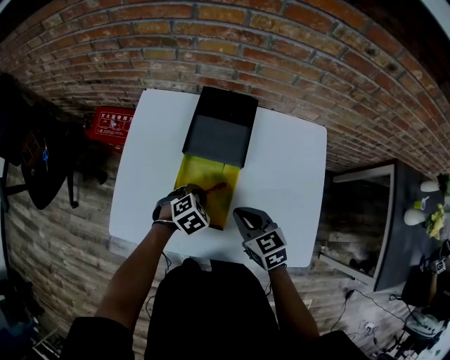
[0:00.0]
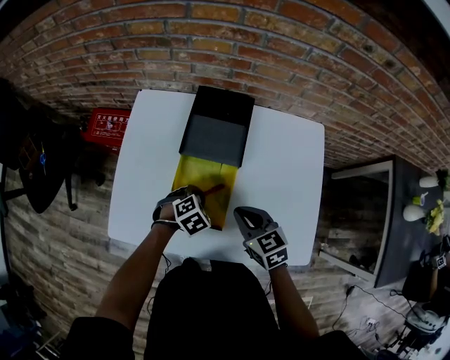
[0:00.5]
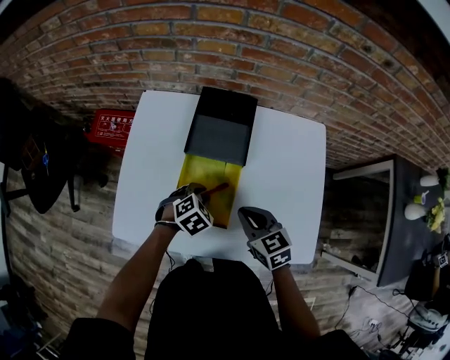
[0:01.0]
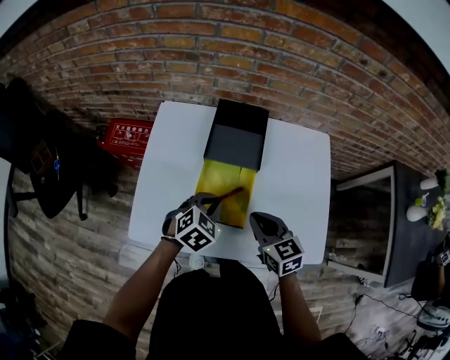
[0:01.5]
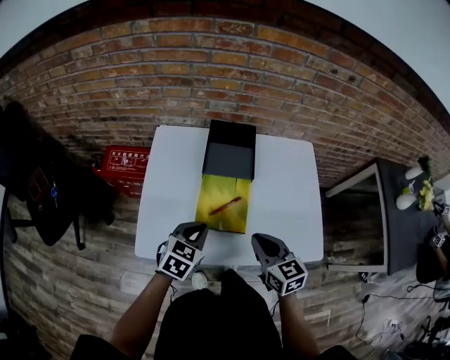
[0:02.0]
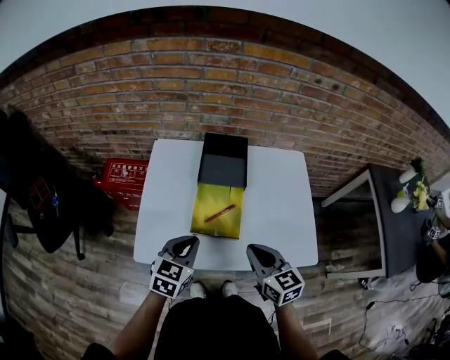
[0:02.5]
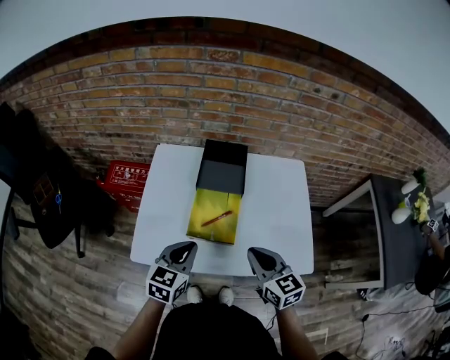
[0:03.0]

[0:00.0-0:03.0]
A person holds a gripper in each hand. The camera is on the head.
0:00.0 to 0:01.5: The left gripper travels upward by approximately 10 cm.
0:01.5 to 0:03.0: The grippers both shift backward and upward by about 15 cm. The left gripper changes its angle by roughly 30 degrees.

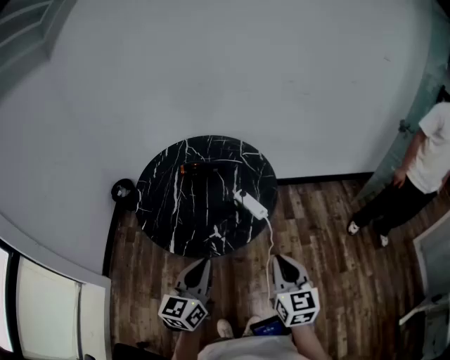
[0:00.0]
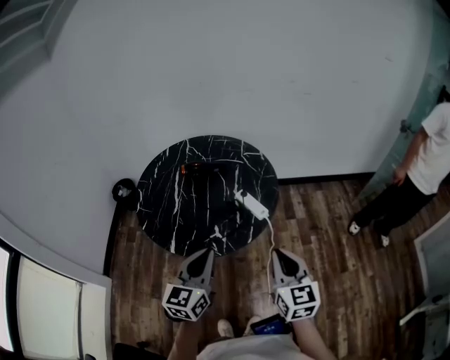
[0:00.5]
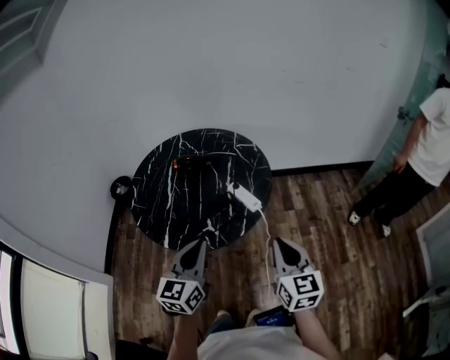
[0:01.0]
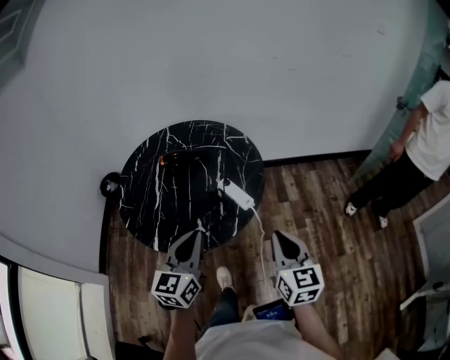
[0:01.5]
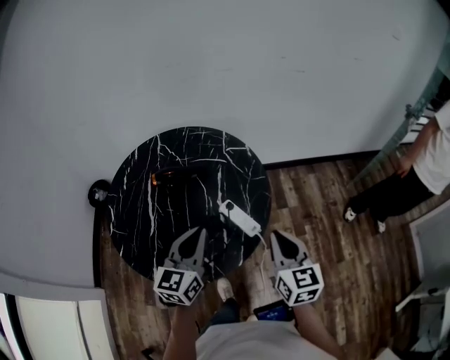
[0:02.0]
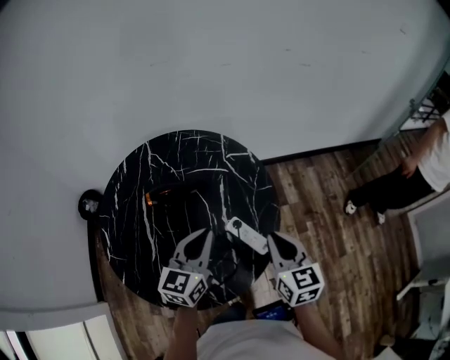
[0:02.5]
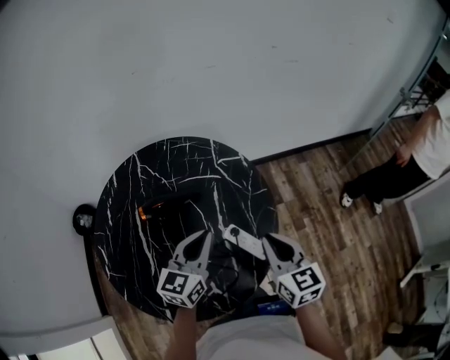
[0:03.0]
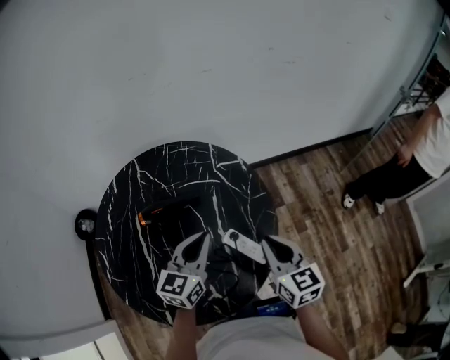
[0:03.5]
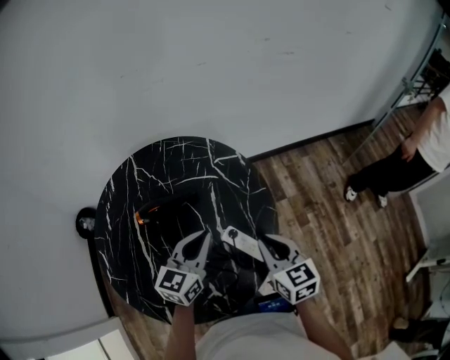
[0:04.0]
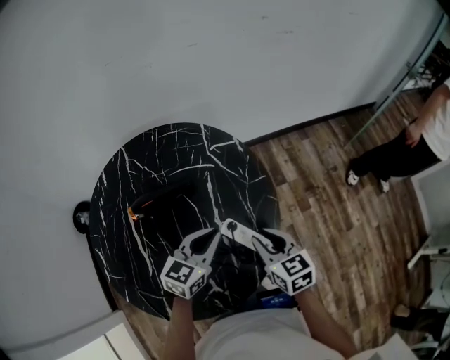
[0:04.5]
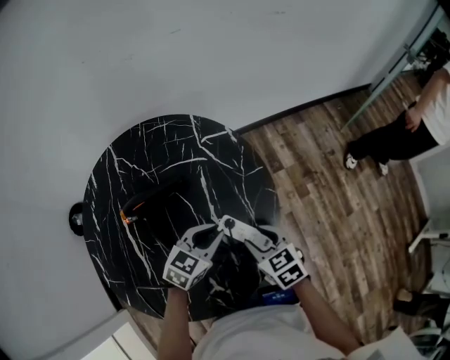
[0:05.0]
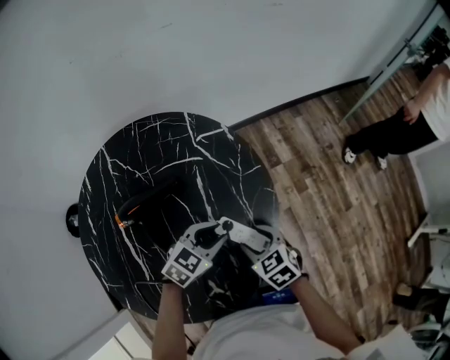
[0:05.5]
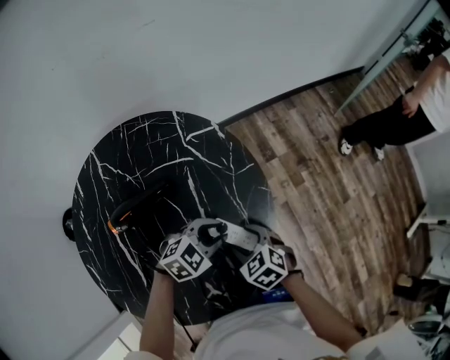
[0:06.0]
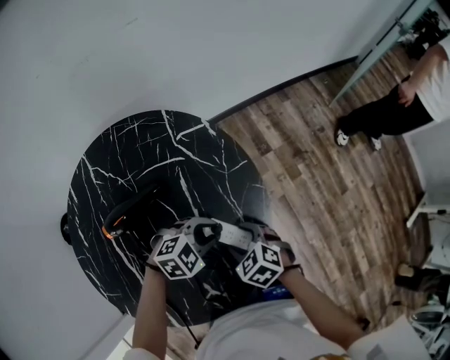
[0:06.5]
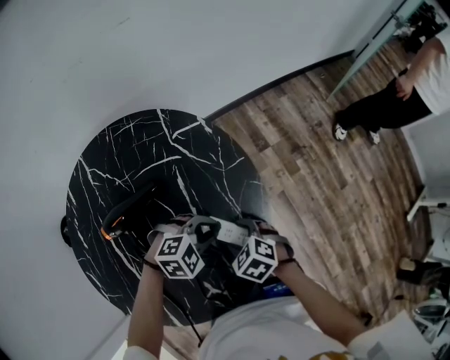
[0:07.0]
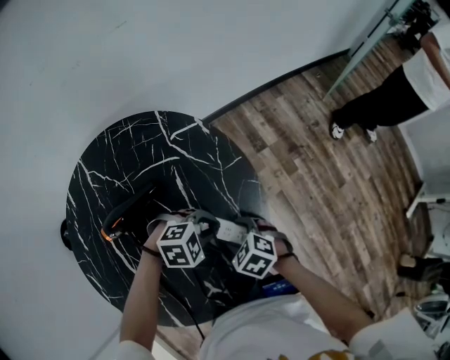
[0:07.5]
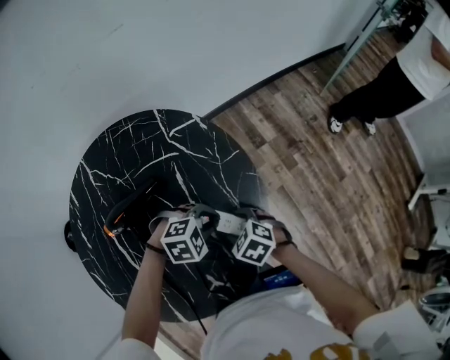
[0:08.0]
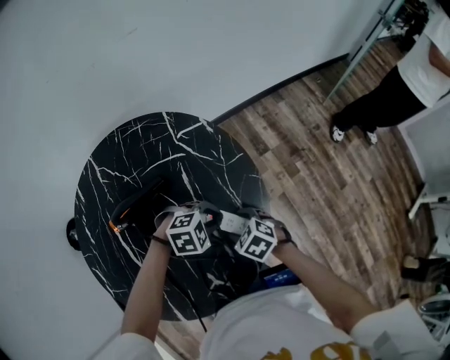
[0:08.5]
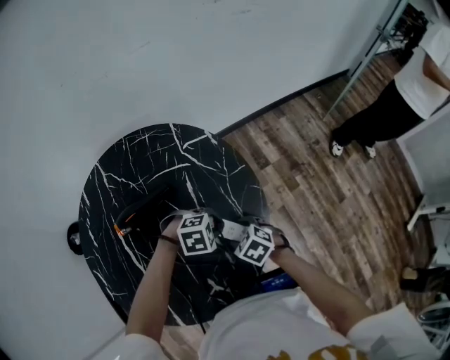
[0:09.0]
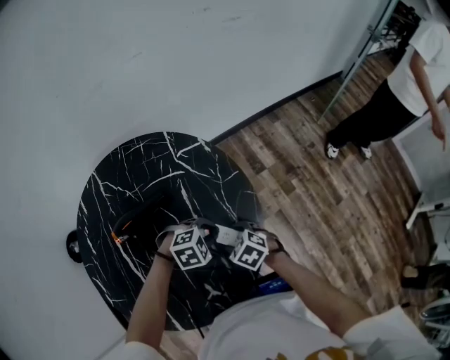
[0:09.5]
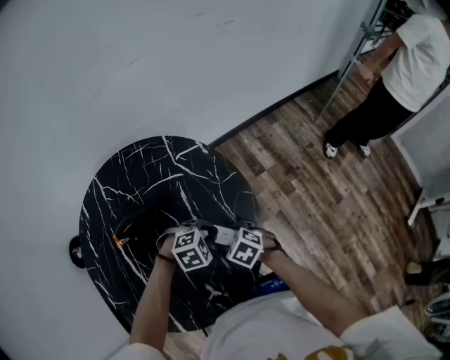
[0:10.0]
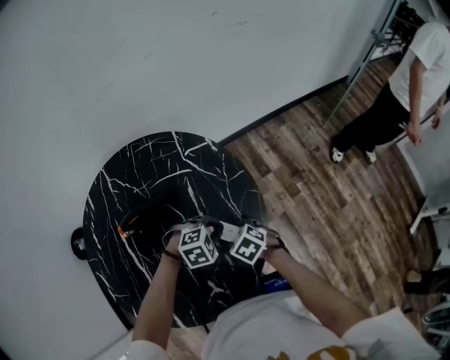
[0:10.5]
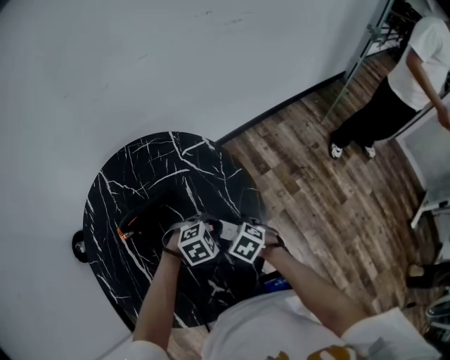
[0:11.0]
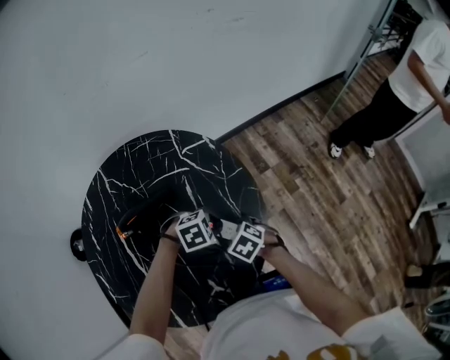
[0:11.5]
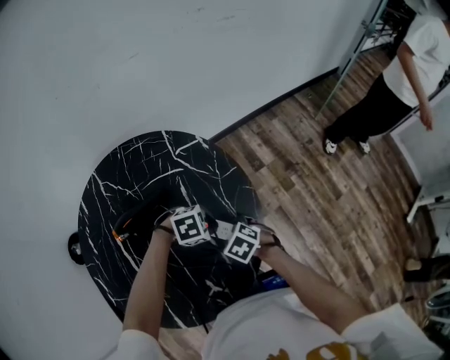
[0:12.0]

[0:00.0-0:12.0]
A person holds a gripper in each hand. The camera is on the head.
0:00.0 to 0:02.0: Both grippers move forward, about 20 cm.
0:02.0 to 0:04.0: The left gripper shifts approximately 15 cm forward and downward. Meanwhile the right gripper heads forward, downward and to the left, covering some 15 cm.
0:04.0 to 0:06.0: The right gripper travels downward by some 15 cm, tips its fingers downward by roughly 30 degrees, and opens its fingers; the left gripper heads downward and to the right, covering about 15 cm, tilts its fingers roughly 30 degrees downward, and opens.
0:06.0 to 0:08.0: The left gripper turns by roughly 30 degrees.
0:08.0 to 0:12.0: There are only small adjustments of the grippers.

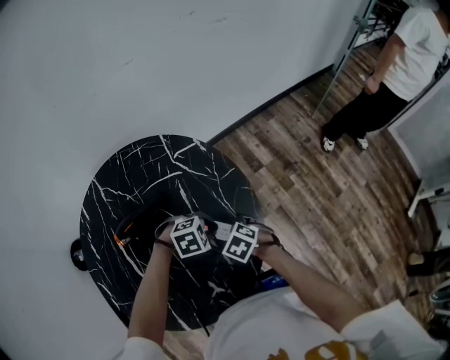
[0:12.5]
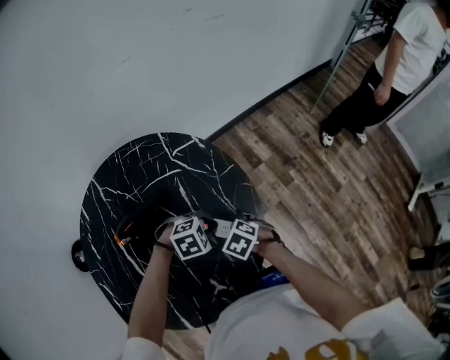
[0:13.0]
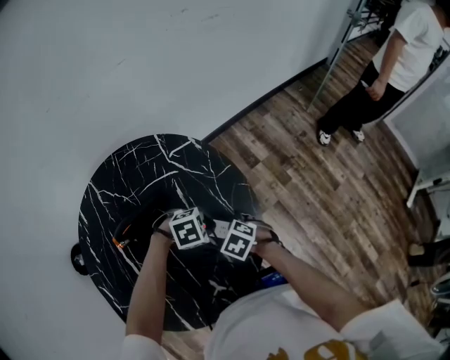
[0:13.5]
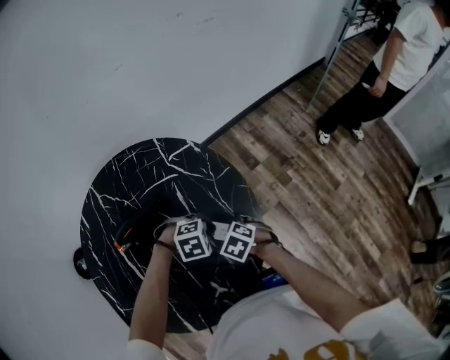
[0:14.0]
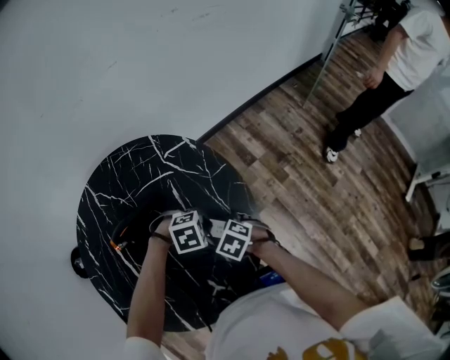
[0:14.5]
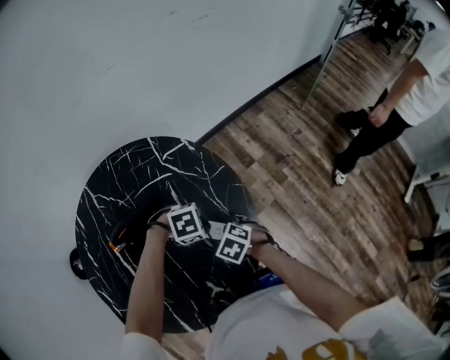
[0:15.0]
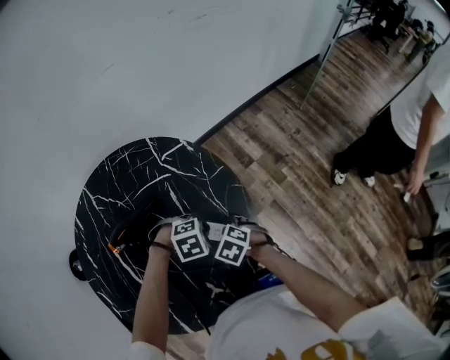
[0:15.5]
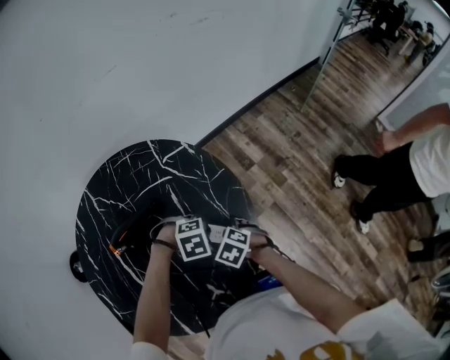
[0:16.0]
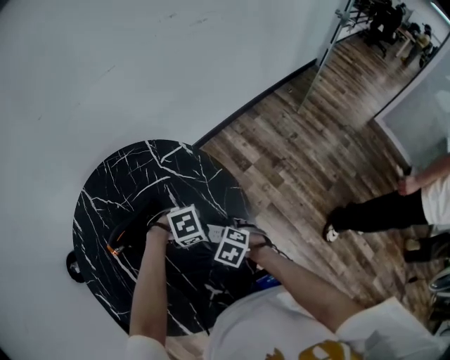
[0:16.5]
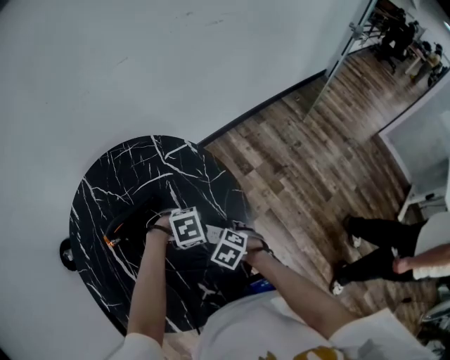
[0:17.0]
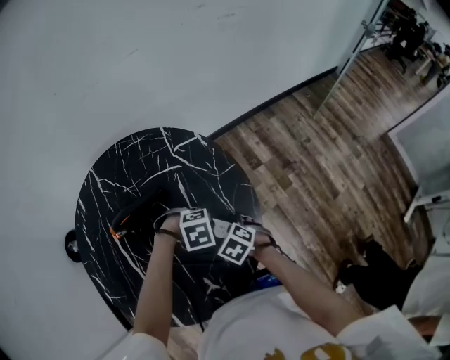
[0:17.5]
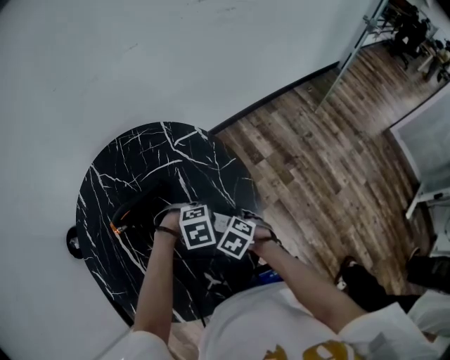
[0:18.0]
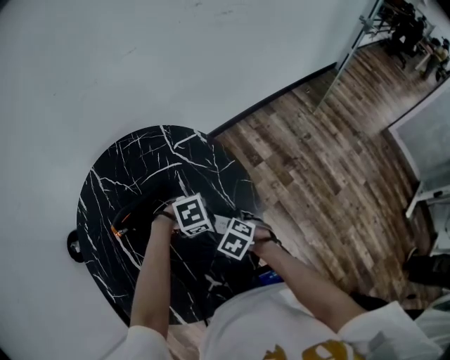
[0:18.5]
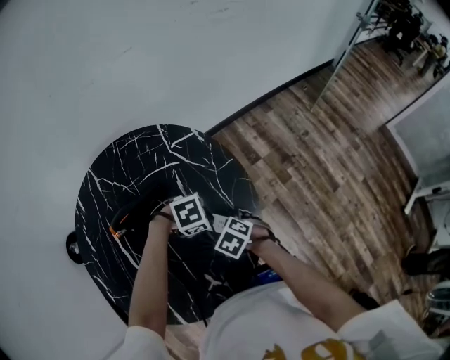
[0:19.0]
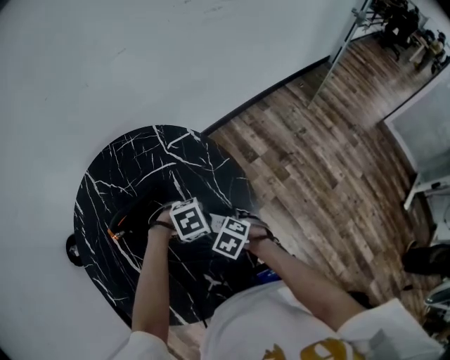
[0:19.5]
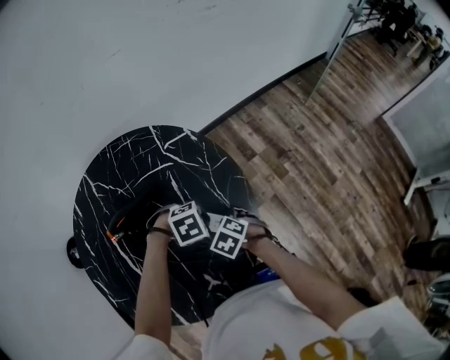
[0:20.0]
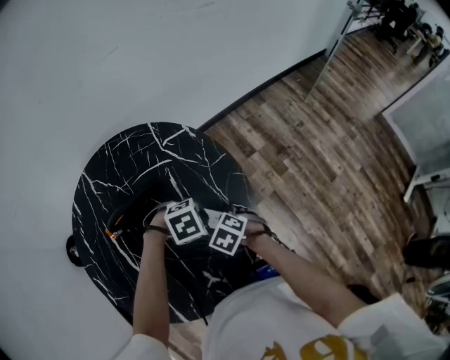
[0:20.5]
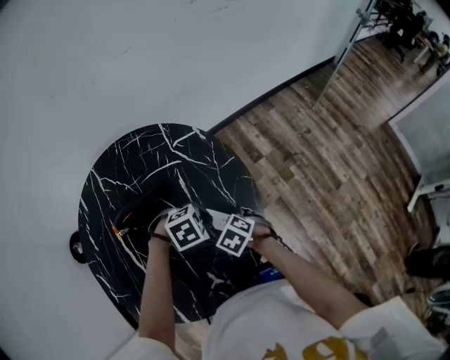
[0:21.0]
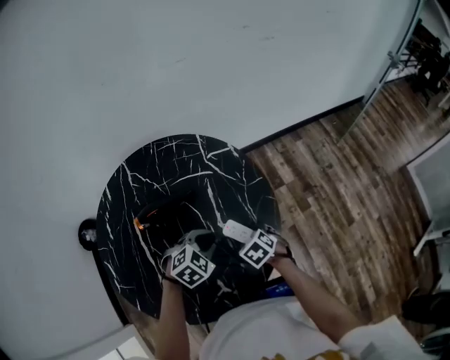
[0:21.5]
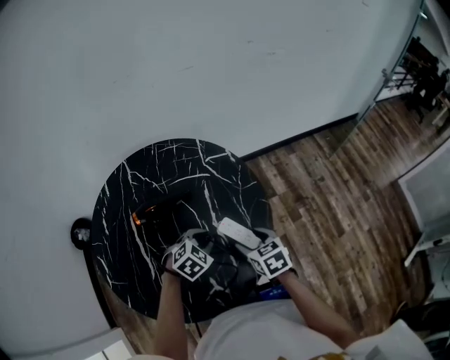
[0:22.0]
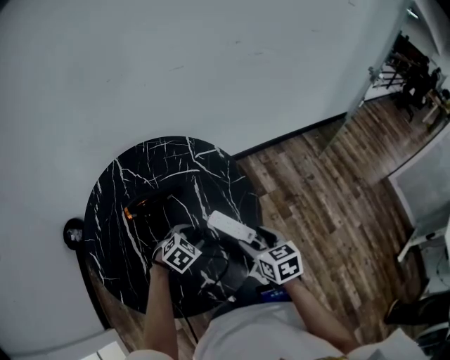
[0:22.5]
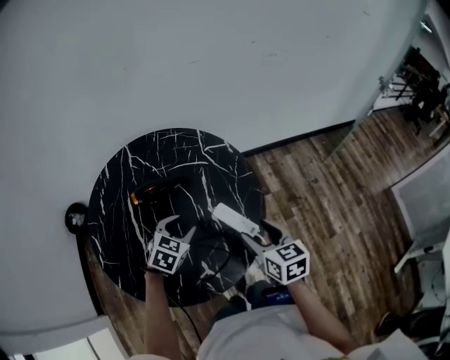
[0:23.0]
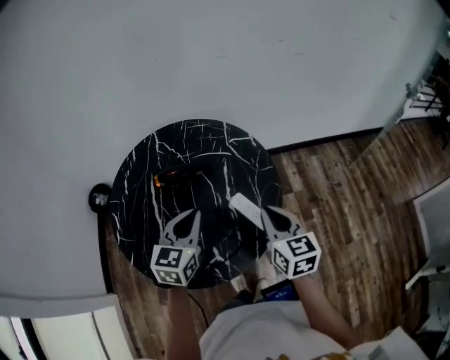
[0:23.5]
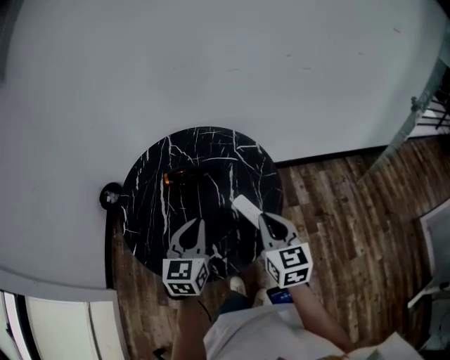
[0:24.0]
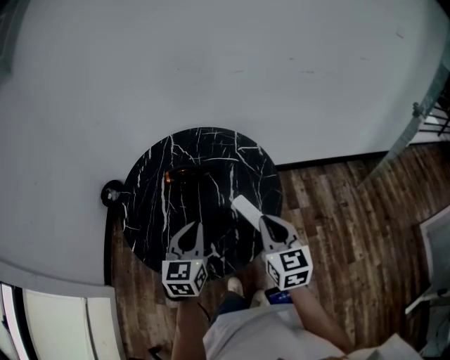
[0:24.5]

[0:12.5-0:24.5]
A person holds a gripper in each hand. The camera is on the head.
0:12.5 to 0:20.5: The grippers make only small movements.
0:20.5 to 0:22.5: The right gripper is displaced upward by roughly 15 cm, and angles its fingers upward, by some 30 degrees. The left gripper shifts by roughly 10 cm, rotates some 50 degrees, and opens its fingers.
0:22.5 to 0:24.5: The left gripper shifts approximately 25 cm upward and backward, points its fingers about 40 degrees further upward, and closes up; the right gripper shifts approximately 15 cm upward, turns by some 30 degrees, and closes.
